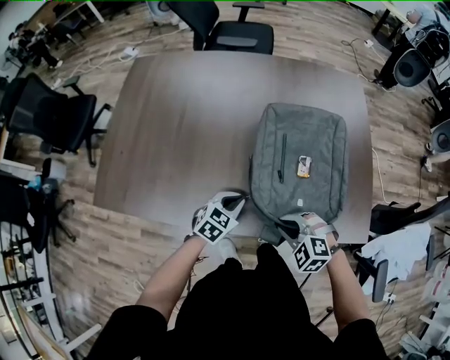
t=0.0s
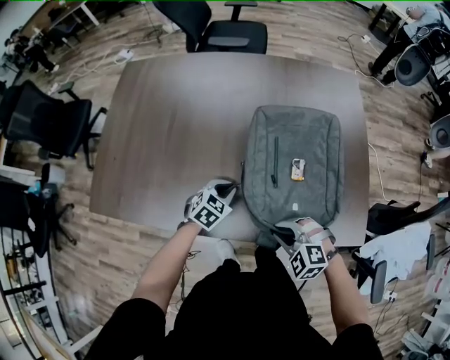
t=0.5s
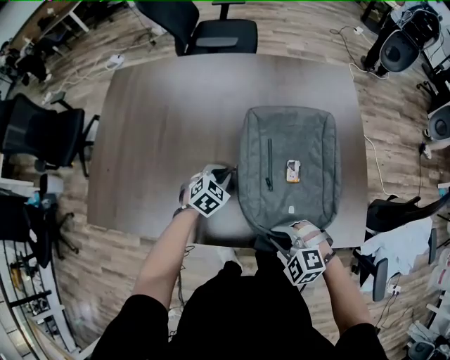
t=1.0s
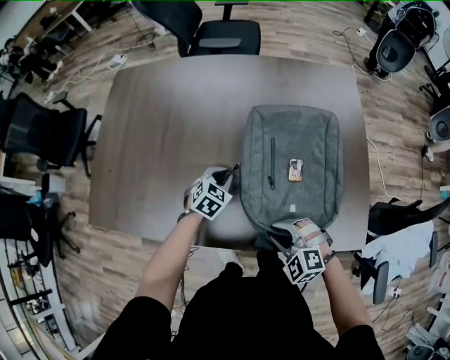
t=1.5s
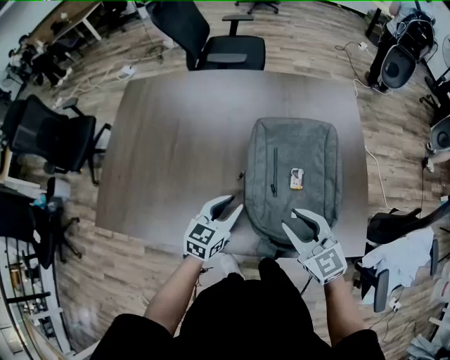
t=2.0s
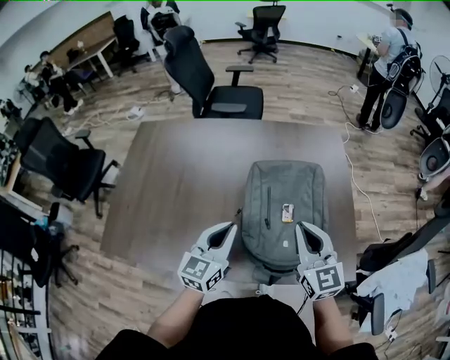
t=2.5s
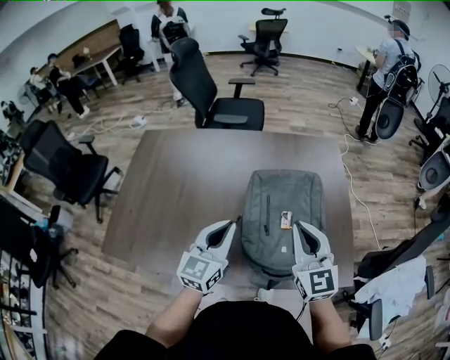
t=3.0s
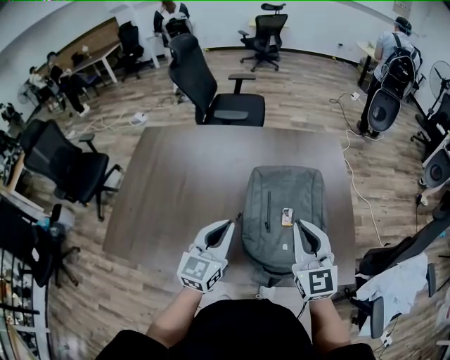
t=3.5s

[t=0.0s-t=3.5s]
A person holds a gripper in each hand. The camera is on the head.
t=0.0s to t=2.0s: The right gripper moves upward and forward, roughly 15 cm, tilts its fingers about 40 degrees upward, and opens. The left gripper goes about 10 cm upward, goes forward and returns, roughly 15 cm each way, rotates roughly 20 degrees, and opens up.
t=2.0s to t=3.5s: The two grippers go approximately 15 cm upward. The right gripper changes its angle by approximately 30 degrees, and closes its fingers, while the left gripper turns by approximately 20 degrees, and closes its fingers.

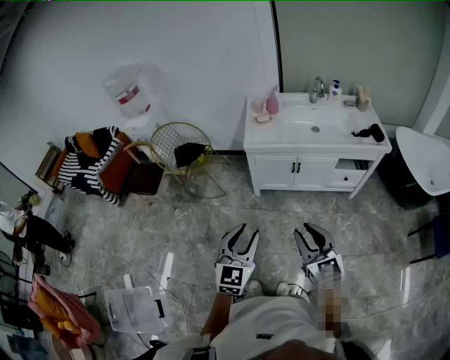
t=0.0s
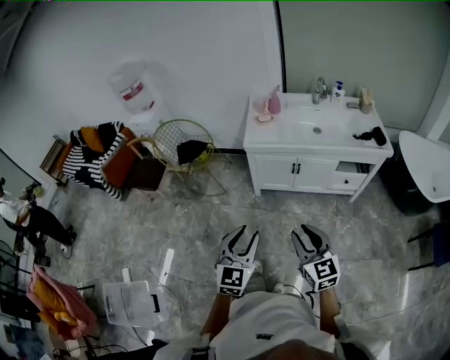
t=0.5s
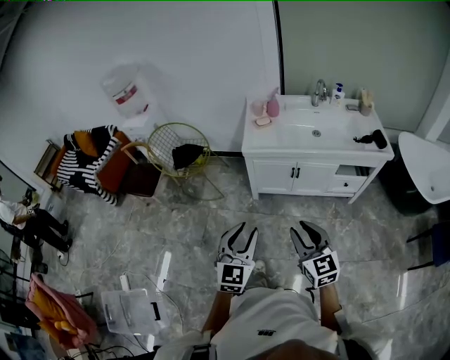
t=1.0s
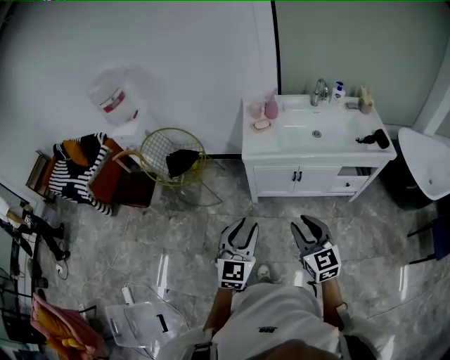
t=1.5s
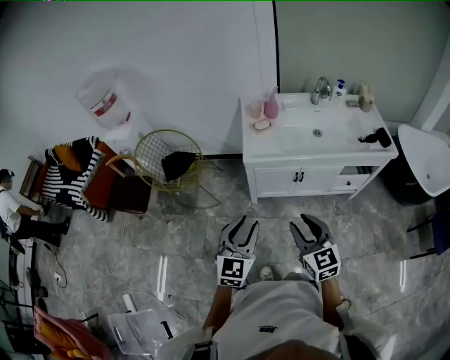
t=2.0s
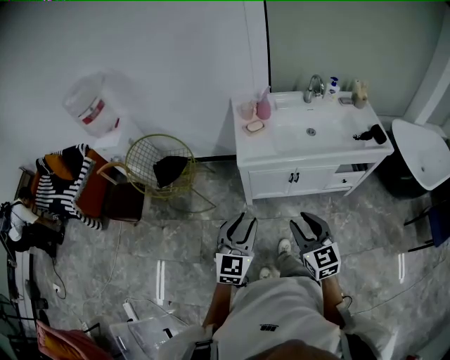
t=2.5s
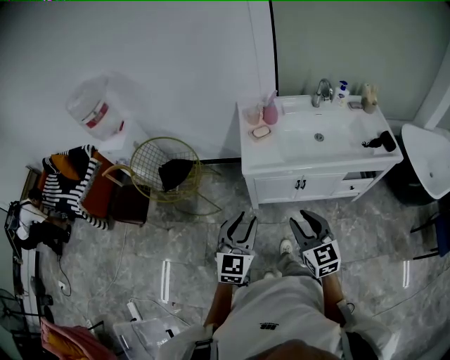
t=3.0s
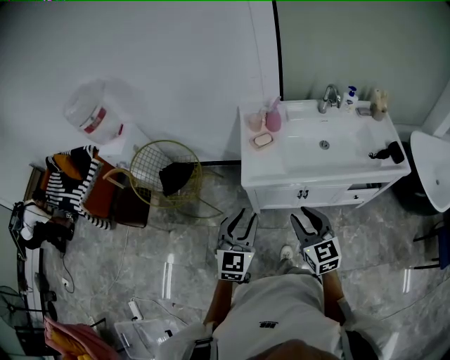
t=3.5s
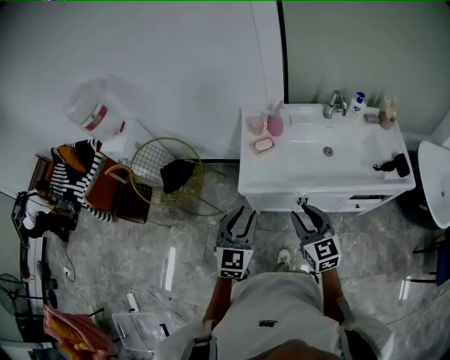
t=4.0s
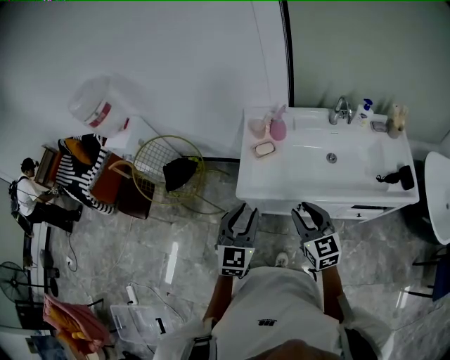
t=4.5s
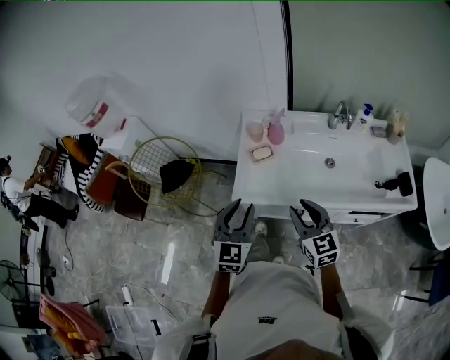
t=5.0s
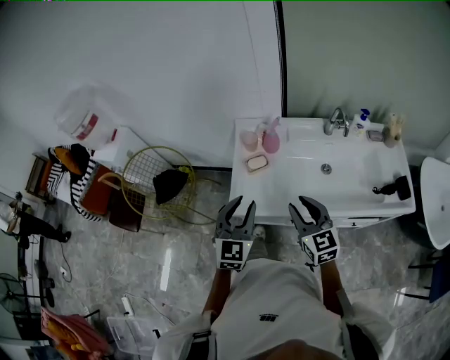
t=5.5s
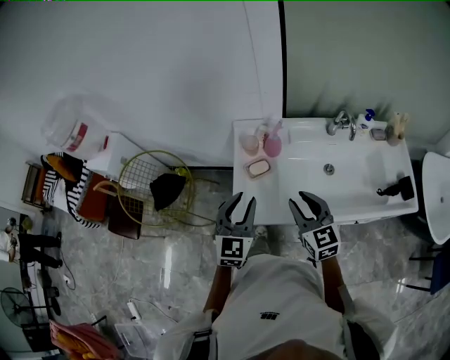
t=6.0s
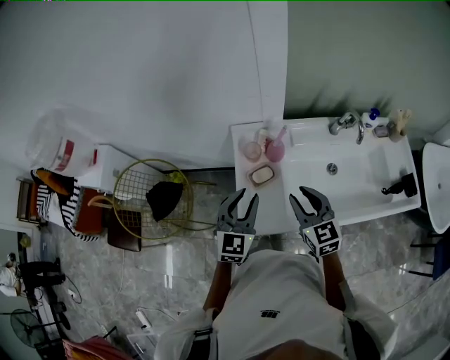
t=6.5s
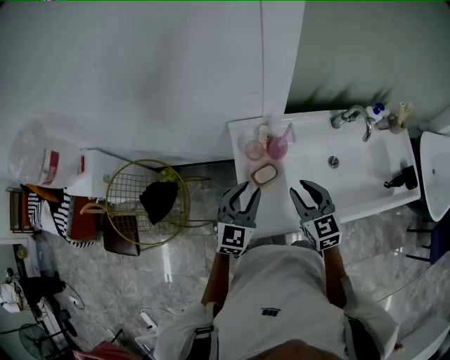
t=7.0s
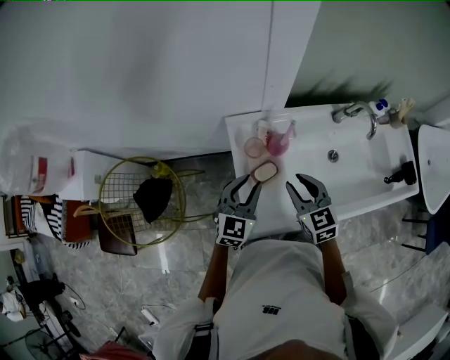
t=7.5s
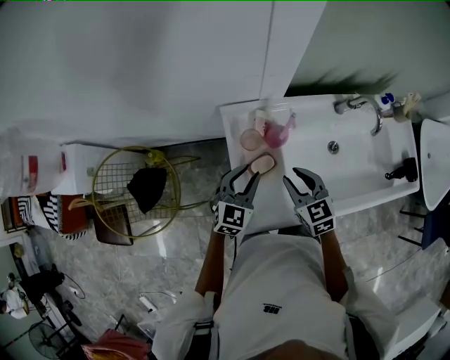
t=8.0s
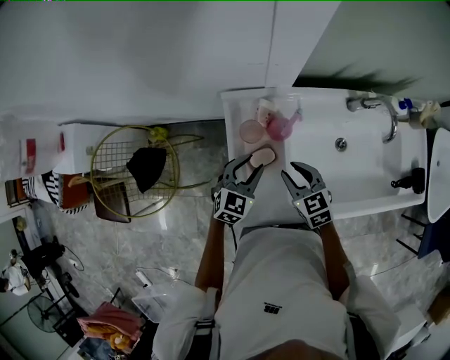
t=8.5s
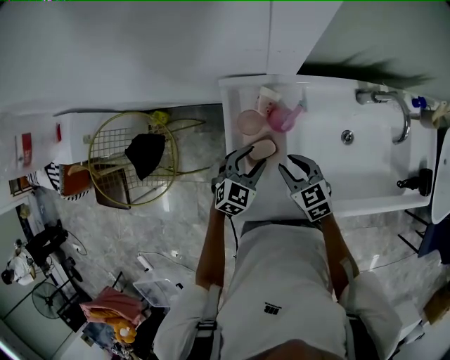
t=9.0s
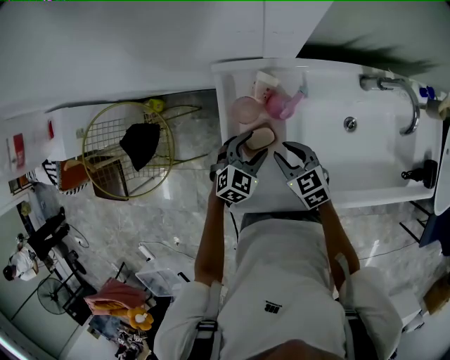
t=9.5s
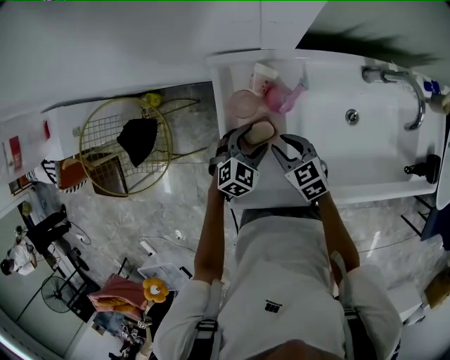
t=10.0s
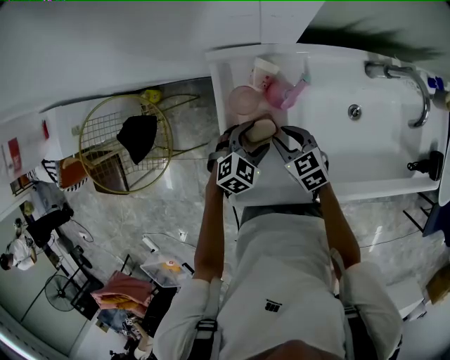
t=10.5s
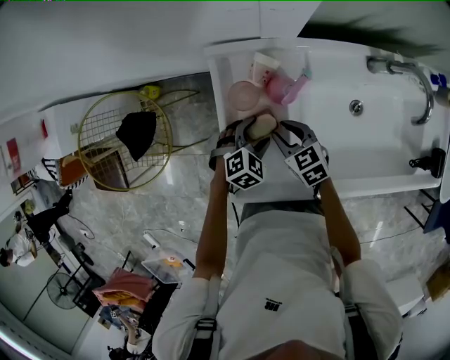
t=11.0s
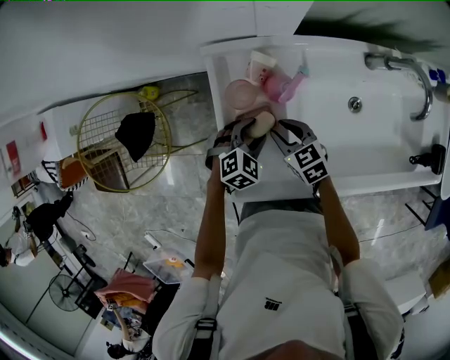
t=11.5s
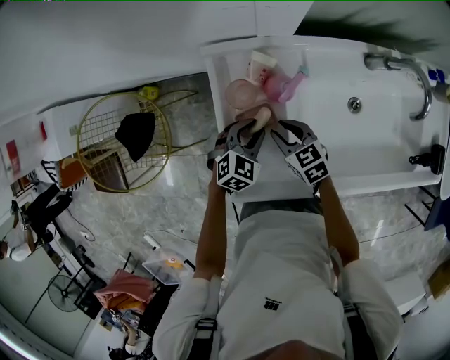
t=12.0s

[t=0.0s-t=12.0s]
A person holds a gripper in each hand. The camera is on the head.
t=0.0s to t=2.0s: The two grippers go some 20 cm forward.
t=2.0s to t=4.0s: The two grippers go about 25 cm forward.
t=4.0s to t=6.0s: The grippers both shift forward by approximately 20 cm.
t=6.0s to t=8.0s: The right gripper travels forward, downward and to the left by about 20 cm. The left gripper is displaced forward and downward by some 25 cm, and changes its angle by about 20 degrees.
t=8.0s to t=10.0s: The two grippers go some 15 cm downward. The left gripper changes its angle by roughly 20 degrees, and opens up, while the right gripper rotates some 20 degrees.
t=10.0s to t=12.0s: The left gripper closes up.

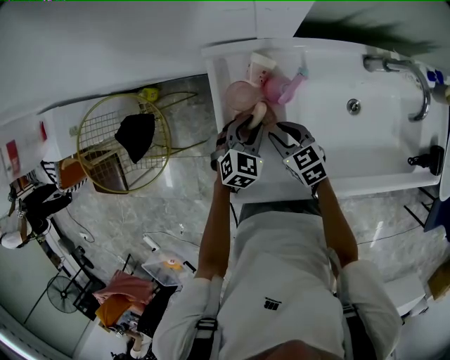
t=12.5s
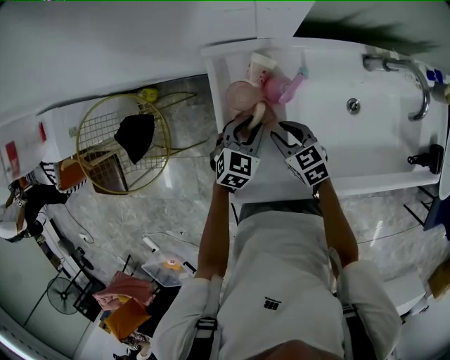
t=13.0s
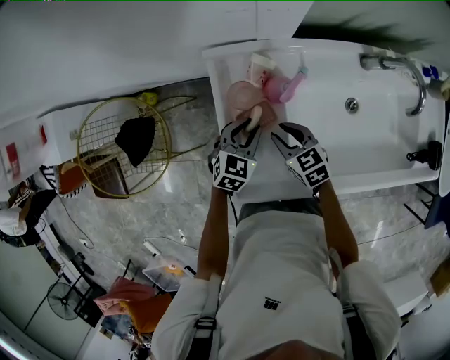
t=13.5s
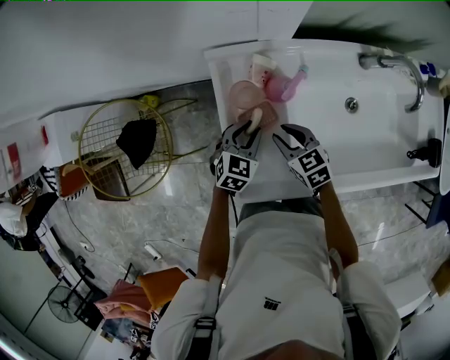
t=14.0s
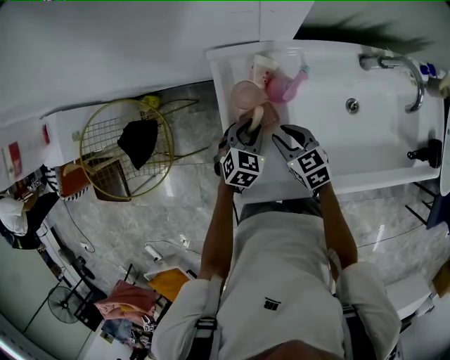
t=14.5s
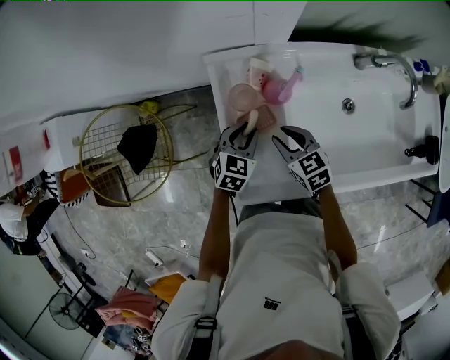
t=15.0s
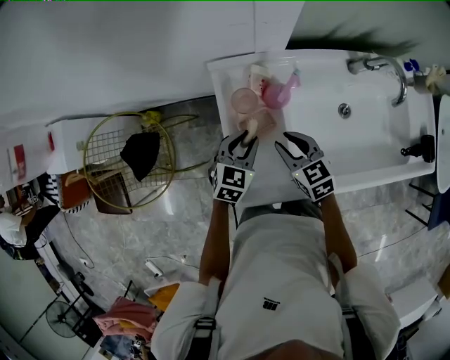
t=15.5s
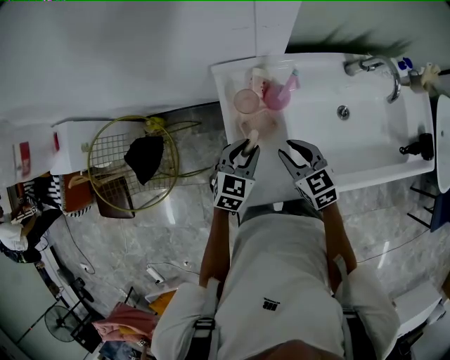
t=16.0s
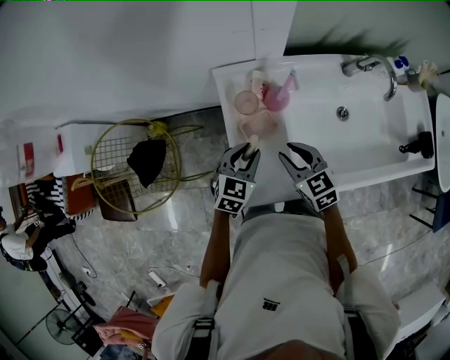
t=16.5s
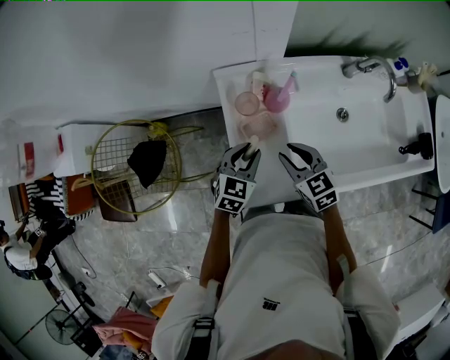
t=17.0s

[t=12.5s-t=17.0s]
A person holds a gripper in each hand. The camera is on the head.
t=12.5s to t=14.5s: The grippers move only a little.
t=14.5s to t=17.0s: The right gripper moves upward, approximately 10 cm. Meanwhile the left gripper travels upward and backward by approximately 10 cm.

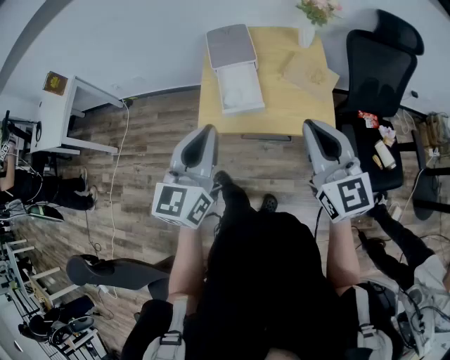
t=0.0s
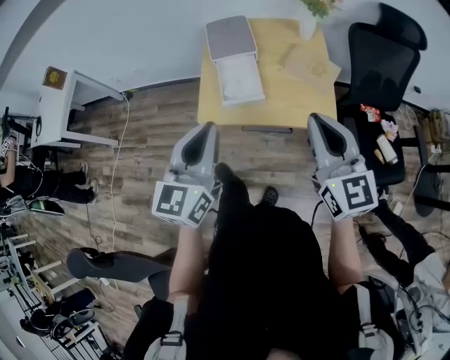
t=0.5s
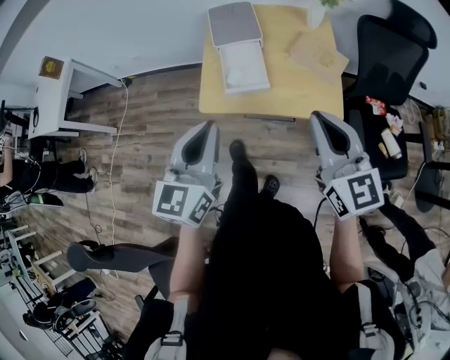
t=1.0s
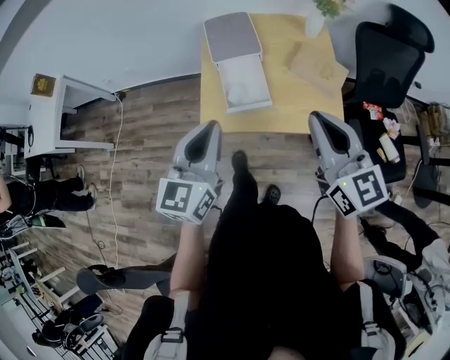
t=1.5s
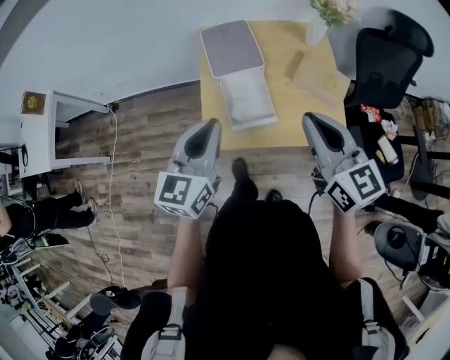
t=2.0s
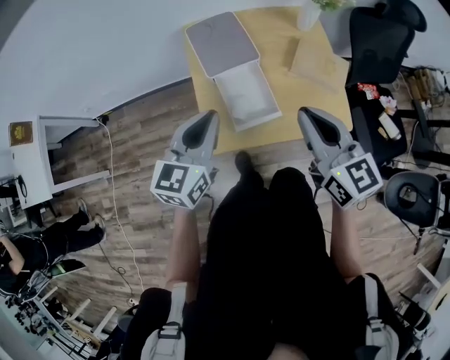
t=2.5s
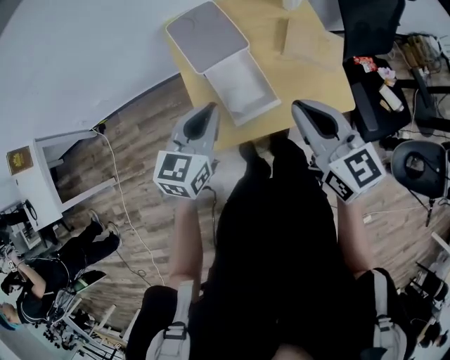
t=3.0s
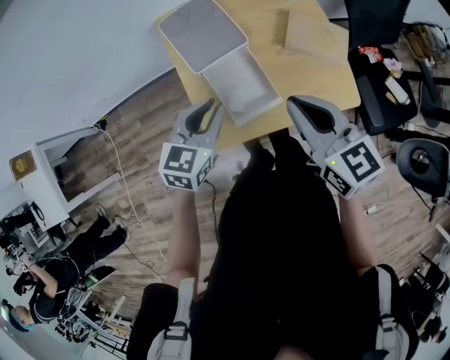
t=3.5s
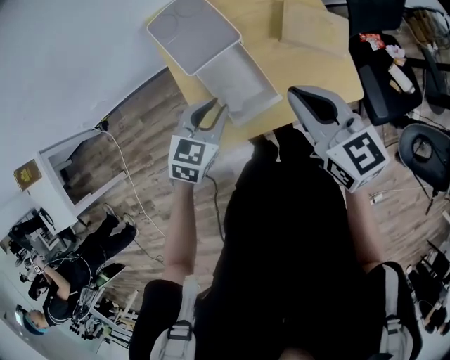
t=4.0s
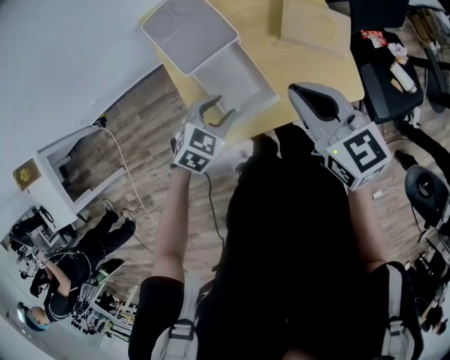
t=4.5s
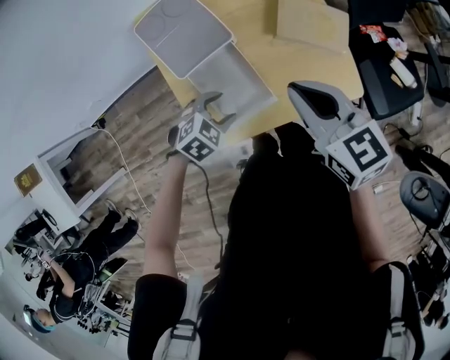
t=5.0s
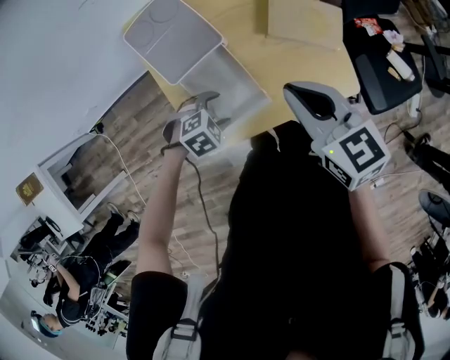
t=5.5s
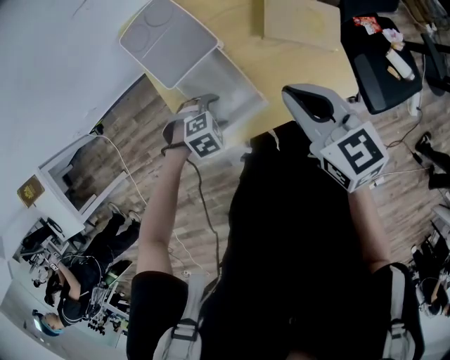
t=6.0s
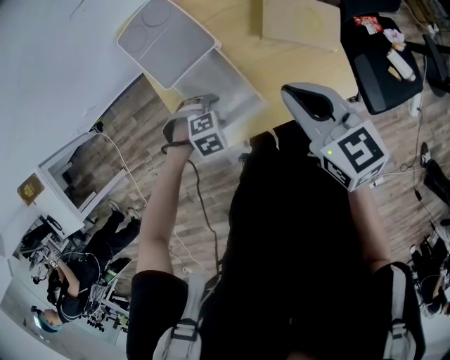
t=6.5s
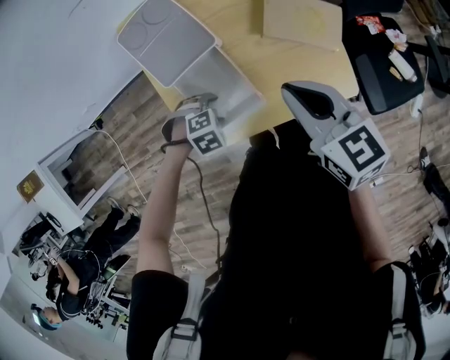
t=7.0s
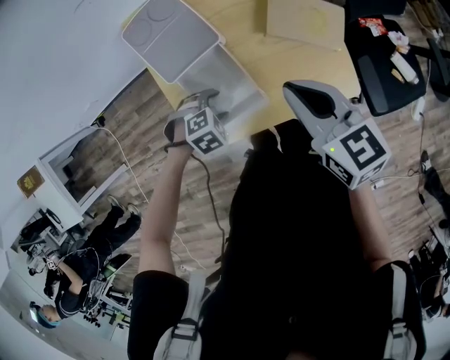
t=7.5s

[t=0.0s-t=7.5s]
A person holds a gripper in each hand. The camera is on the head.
t=0.0s to t=2.0s: The left gripper heads forward, covering some 15 cm. The right gripper heads forward and to the left, covering some 15 cm.
t=2.0s to t=4.0s: The left gripper travels downward and forward by roughly 25 cm, and rotates some 40 degrees, while the right gripper is displaced downward and forward by about 15 cm.
t=4.0s to t=5.5s: The left gripper shifts about 15 cm downward, tilts its fingers roughly 30 degrees downward, and opens. Meanwhile the right gripper changes place by some 5 cm.
t=5.5s to t=7.5s: The grippers make only small movements.
